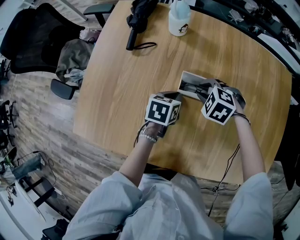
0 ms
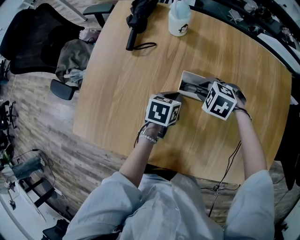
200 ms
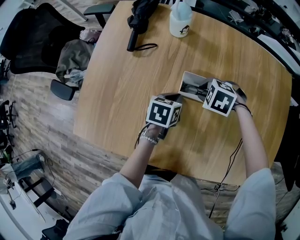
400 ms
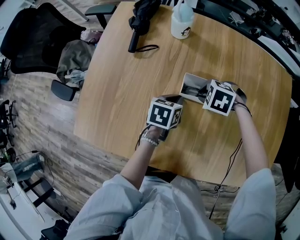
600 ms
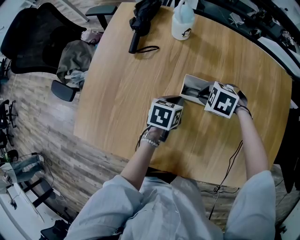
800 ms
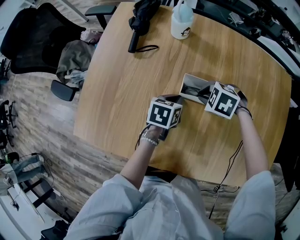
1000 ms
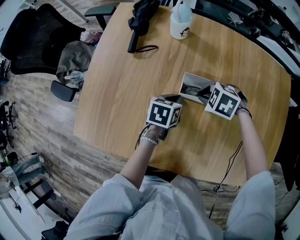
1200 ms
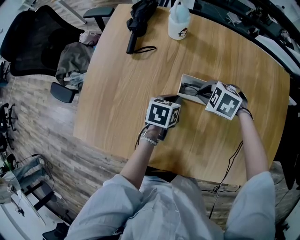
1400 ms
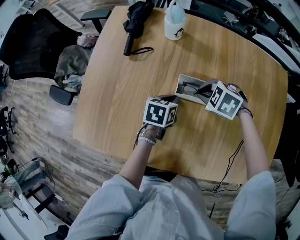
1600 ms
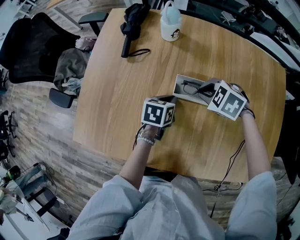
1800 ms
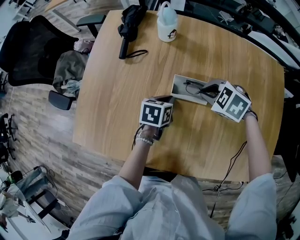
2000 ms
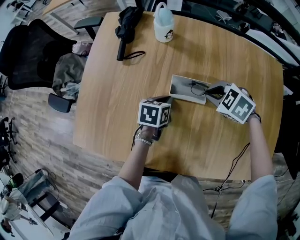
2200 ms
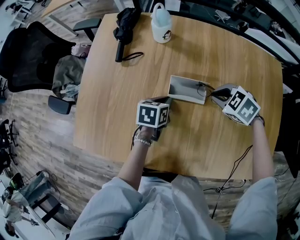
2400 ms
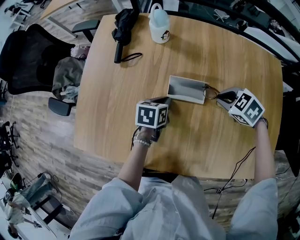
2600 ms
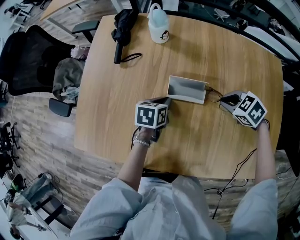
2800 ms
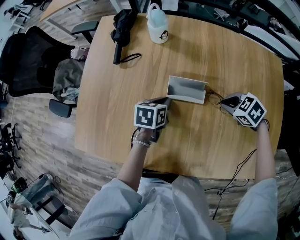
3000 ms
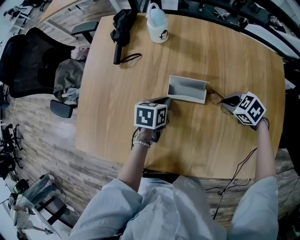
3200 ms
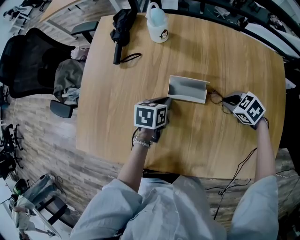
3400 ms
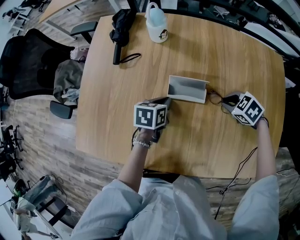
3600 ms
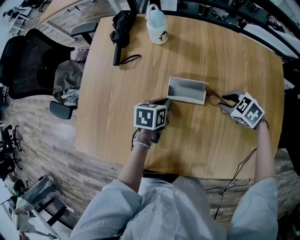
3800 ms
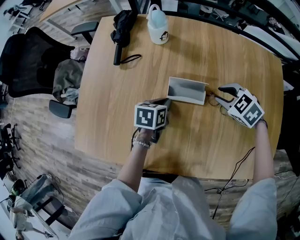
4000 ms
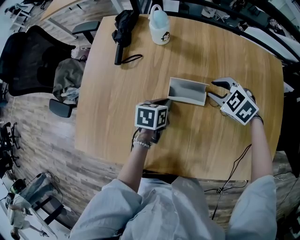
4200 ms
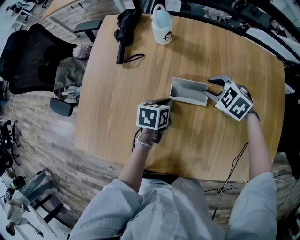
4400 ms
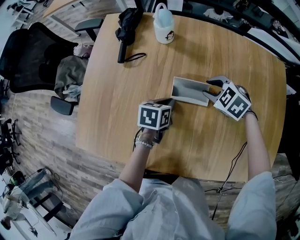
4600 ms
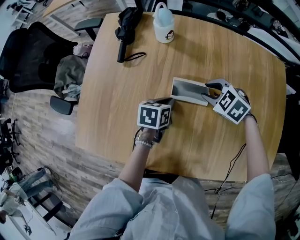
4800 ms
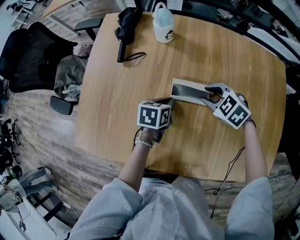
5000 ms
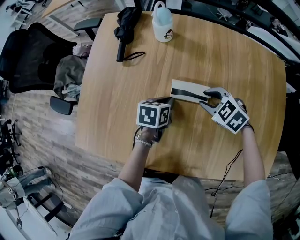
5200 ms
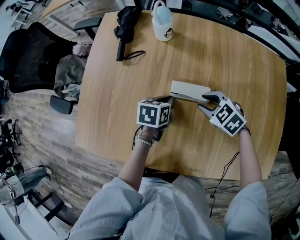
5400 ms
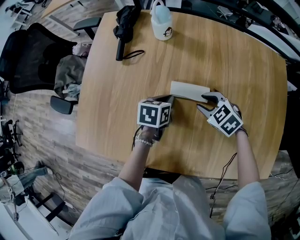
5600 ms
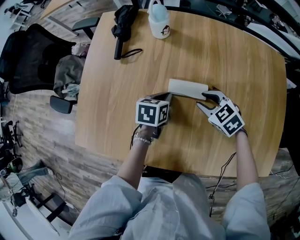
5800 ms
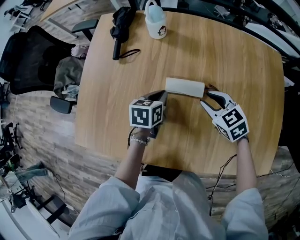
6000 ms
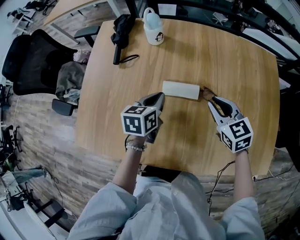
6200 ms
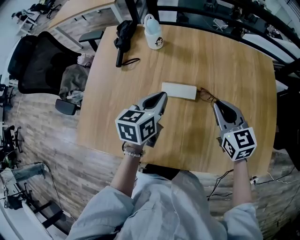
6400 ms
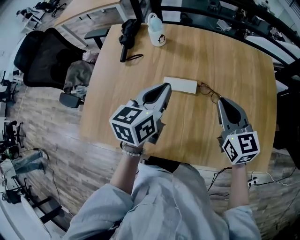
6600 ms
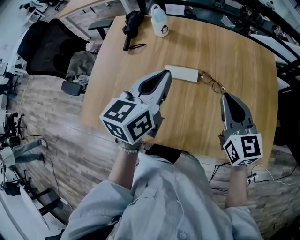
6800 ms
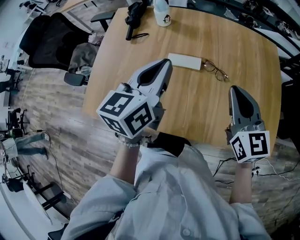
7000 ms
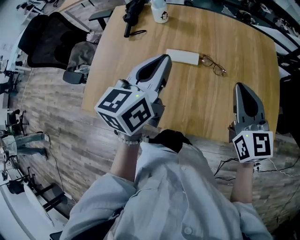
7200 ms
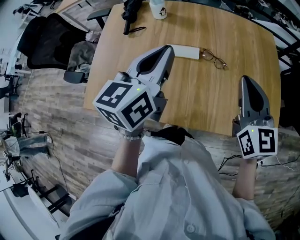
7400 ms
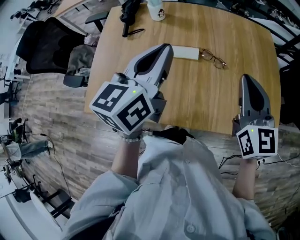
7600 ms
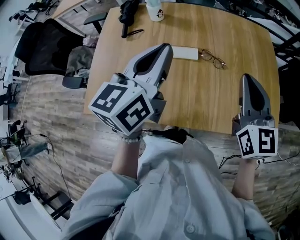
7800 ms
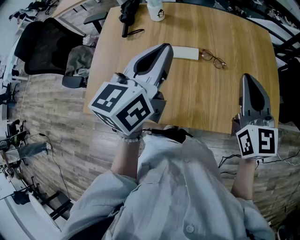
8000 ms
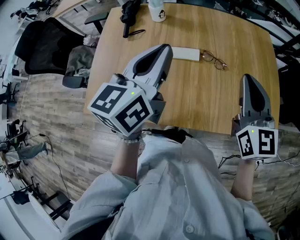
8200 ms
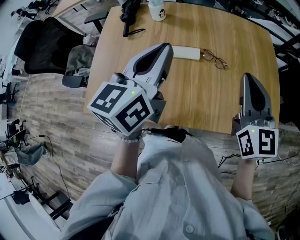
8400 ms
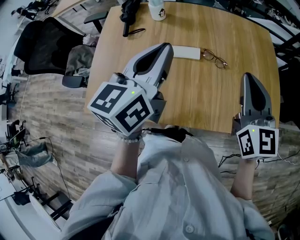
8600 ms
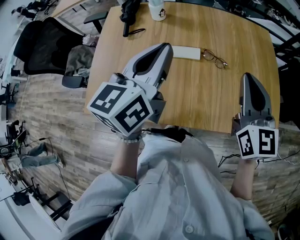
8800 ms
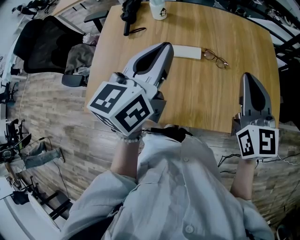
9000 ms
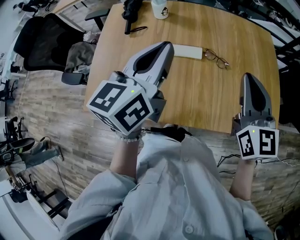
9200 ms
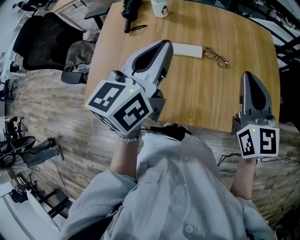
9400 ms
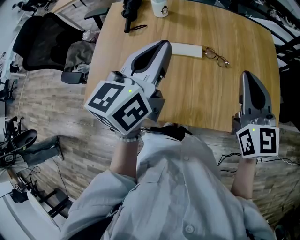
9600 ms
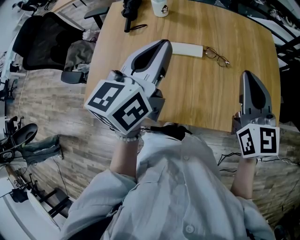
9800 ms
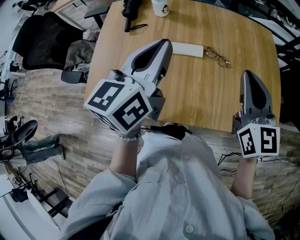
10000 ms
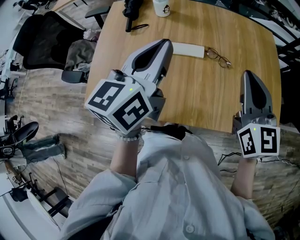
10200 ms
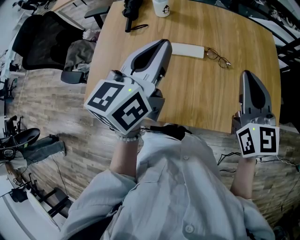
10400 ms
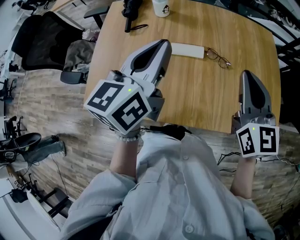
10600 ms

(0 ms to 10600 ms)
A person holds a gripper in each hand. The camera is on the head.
0 ms - 1600 ms: There are only small adjustments of the grippers.
1600 ms - 3000 ms: The right gripper moves to the right and backward, approximately 15 cm, and swivels approximately 20 degrees.
3000 ms - 4600 ms: The right gripper goes about 10 cm to the left and forward, and opens.
4600 ms - 6000 ms: The right gripper moves backward, roughly 5 cm, and swivels about 30 degrees.
6000 ms - 7600 ms: The left gripper goes about 30 cm upward, and angles its fingers upward, by approximately 40 degrees. Meanwhile the right gripper is displaced upward and backward by approximately 30 cm, tilts its fingers some 40 degrees upward, and closes up.
7600 ms - 10600 ms: The grippers make only small movements.

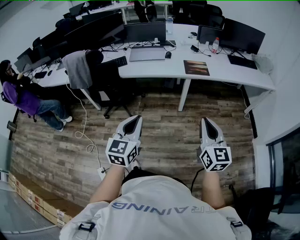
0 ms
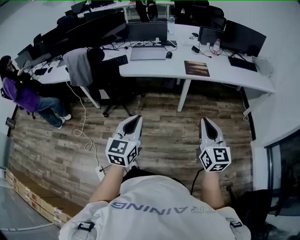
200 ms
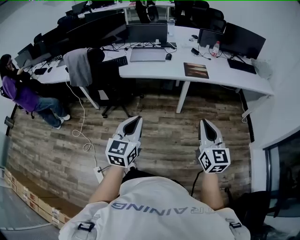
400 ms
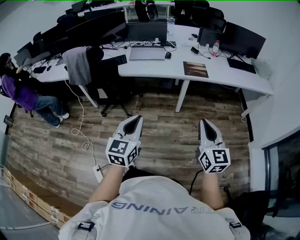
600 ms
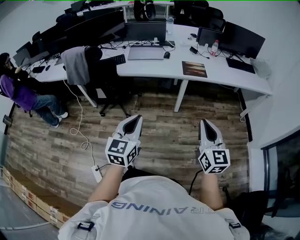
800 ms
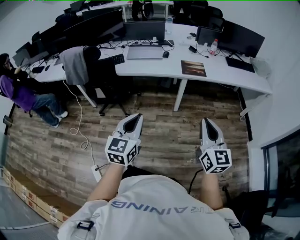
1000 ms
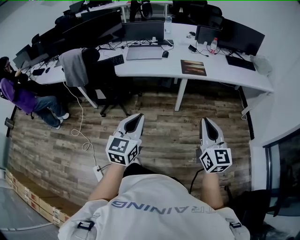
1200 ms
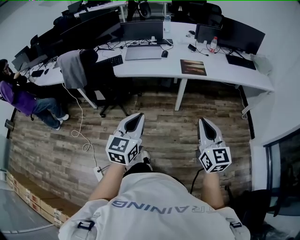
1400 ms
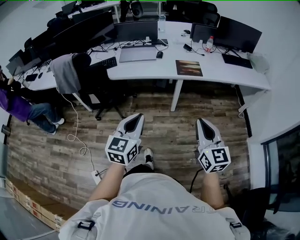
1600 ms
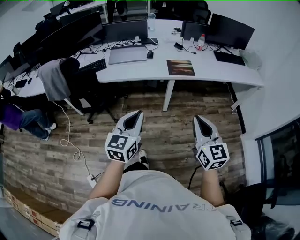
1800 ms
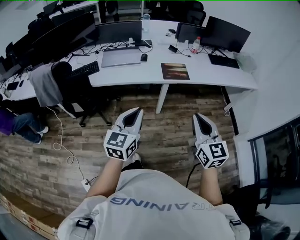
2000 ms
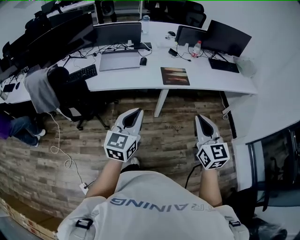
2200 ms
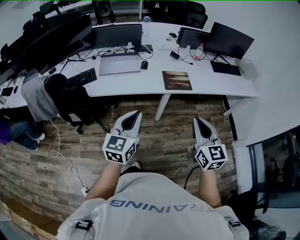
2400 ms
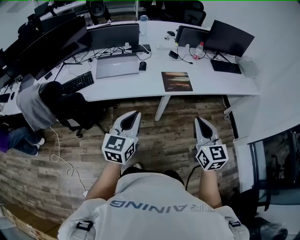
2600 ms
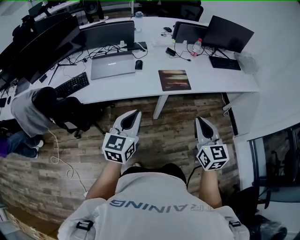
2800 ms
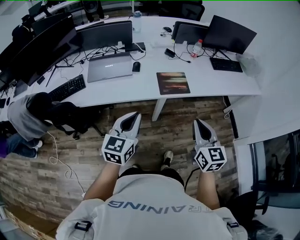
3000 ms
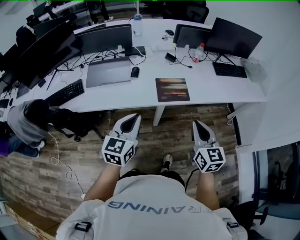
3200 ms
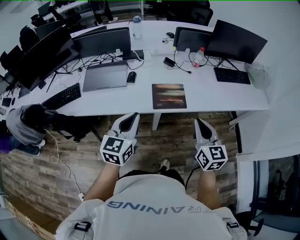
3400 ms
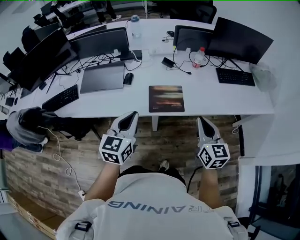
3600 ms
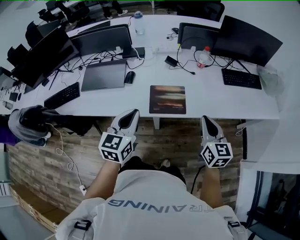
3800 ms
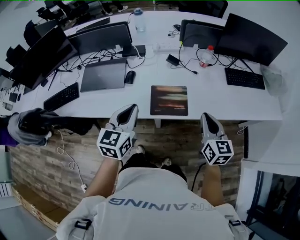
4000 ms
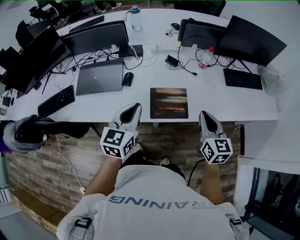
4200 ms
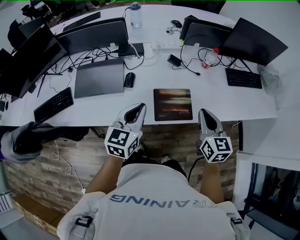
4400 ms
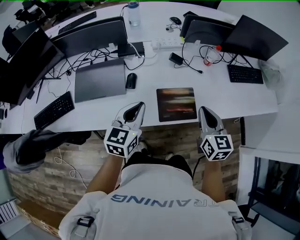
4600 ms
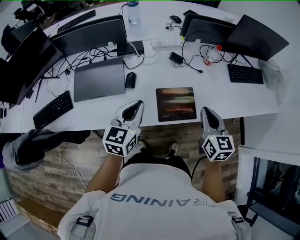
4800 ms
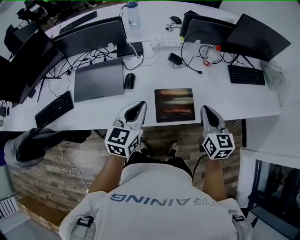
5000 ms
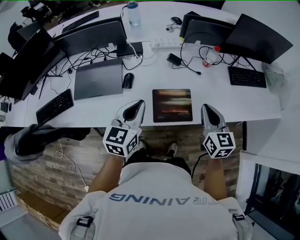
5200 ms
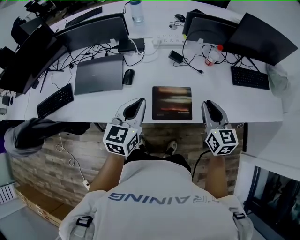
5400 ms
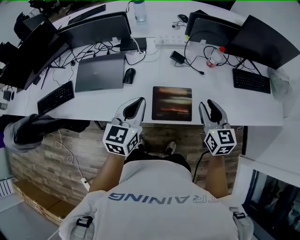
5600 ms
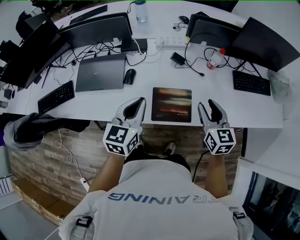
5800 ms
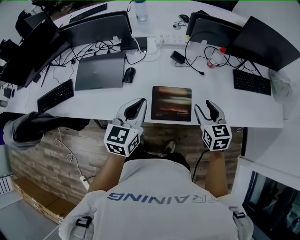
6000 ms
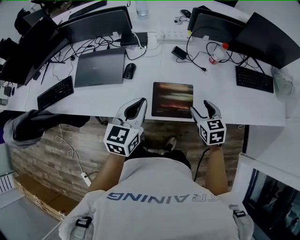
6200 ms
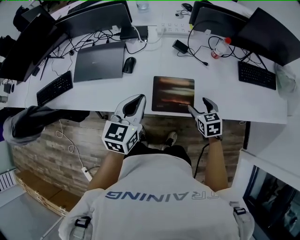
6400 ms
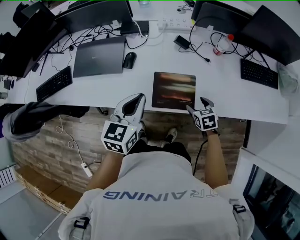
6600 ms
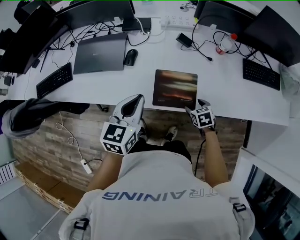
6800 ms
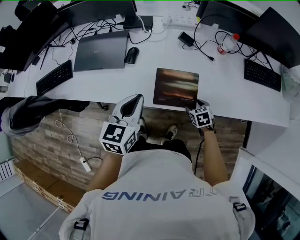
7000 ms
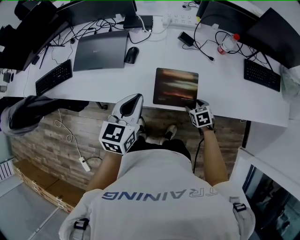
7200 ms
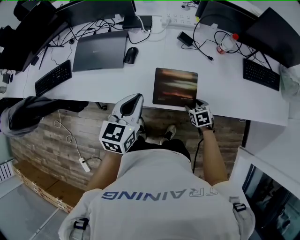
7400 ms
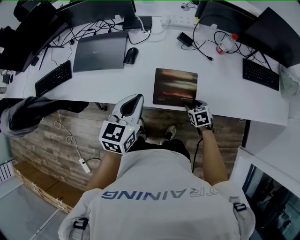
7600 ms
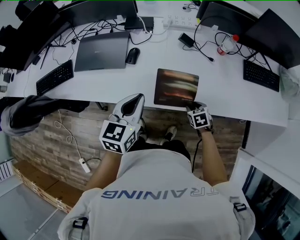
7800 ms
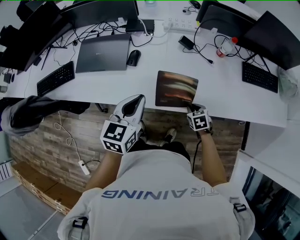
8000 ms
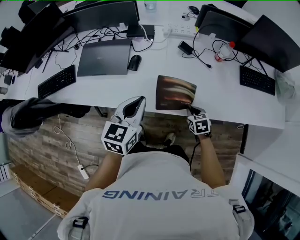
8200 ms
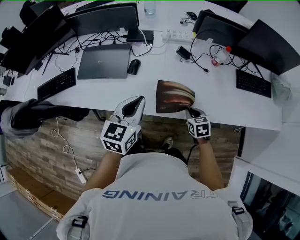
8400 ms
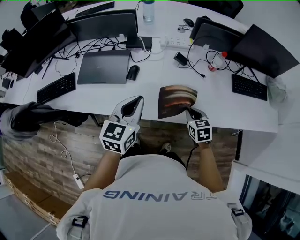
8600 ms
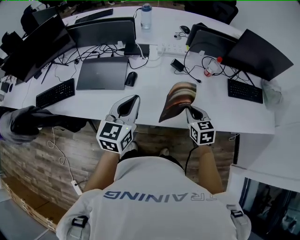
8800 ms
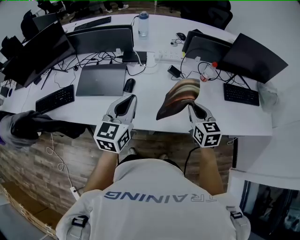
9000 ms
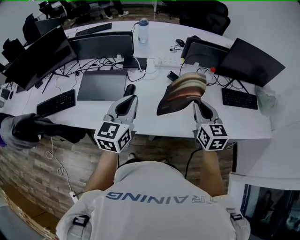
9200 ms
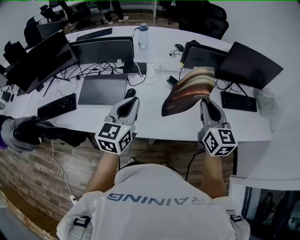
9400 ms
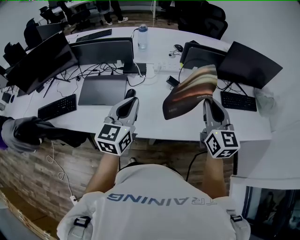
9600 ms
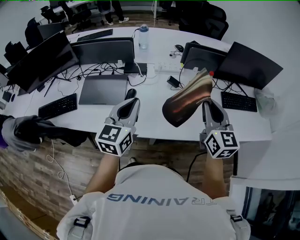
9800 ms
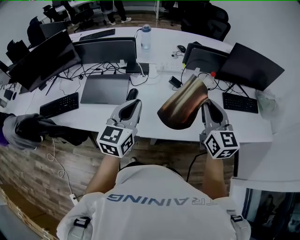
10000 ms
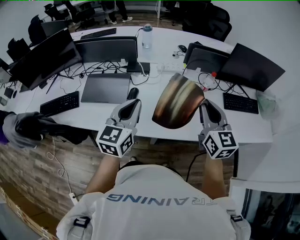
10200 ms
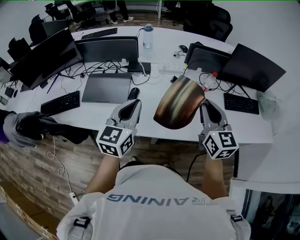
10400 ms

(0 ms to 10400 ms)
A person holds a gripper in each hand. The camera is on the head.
0 ms - 1400 ms: There are only small adjustments of the grippers.
1400 ms - 3000 ms: The two grippers go about 30 cm forward.
3000 ms - 4400 ms: Both grippers move forward, about 30 cm.
4400 ms - 6000 ms: The right gripper moves forward and downward, approximately 10 cm, and opens.
6000 ms - 7400 ms: The left gripper moves approximately 5 cm. The right gripper is displaced downward by roughly 25 cm, and angles its fingers downward, by approximately 30 degrees.
7400 ms - 9000 ms: The right gripper shifts about 30 cm upward, tilts its fingers about 40 degrees upward, and closes its fingers, while the left gripper shifts roughly 10 cm upward.
9000 ms - 10400 ms: The right gripper goes roughly 15 cm upward, and turns by roughly 20 degrees.

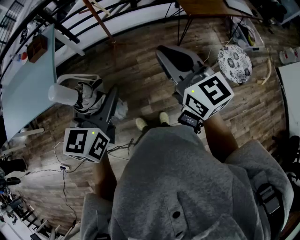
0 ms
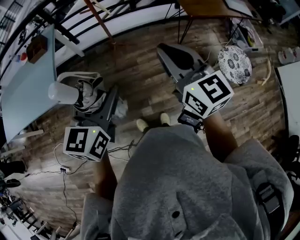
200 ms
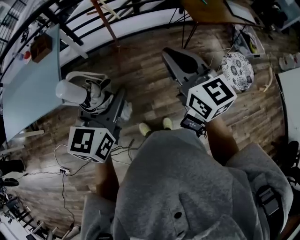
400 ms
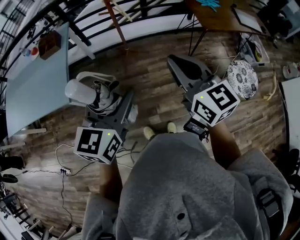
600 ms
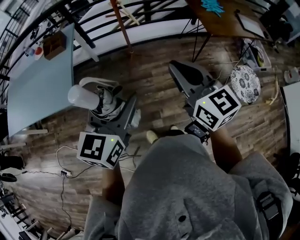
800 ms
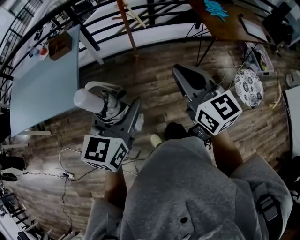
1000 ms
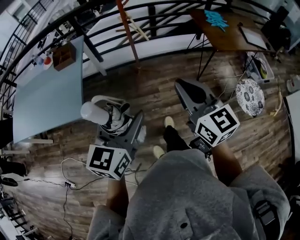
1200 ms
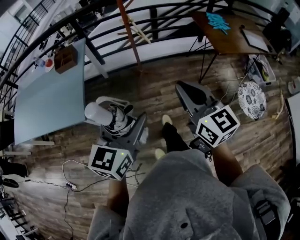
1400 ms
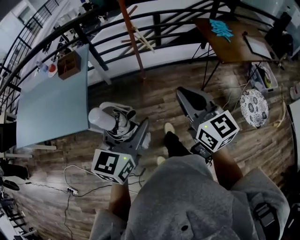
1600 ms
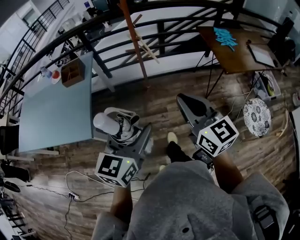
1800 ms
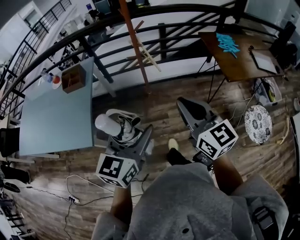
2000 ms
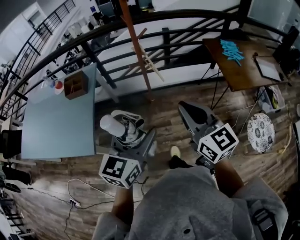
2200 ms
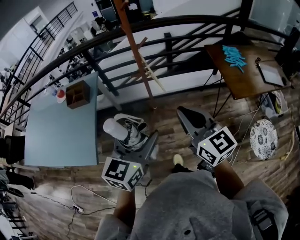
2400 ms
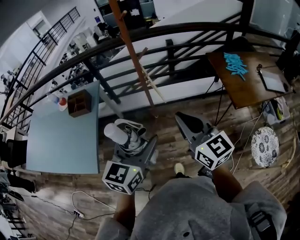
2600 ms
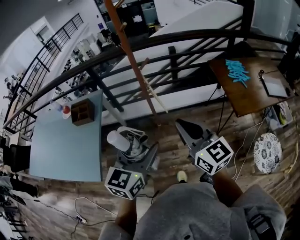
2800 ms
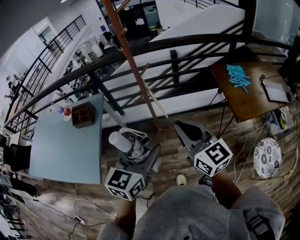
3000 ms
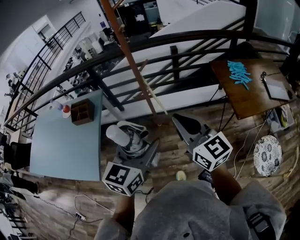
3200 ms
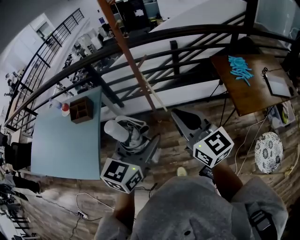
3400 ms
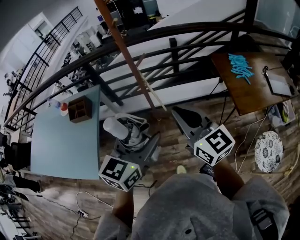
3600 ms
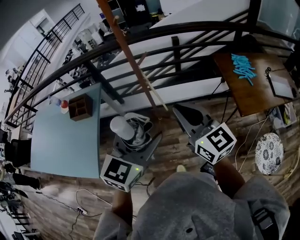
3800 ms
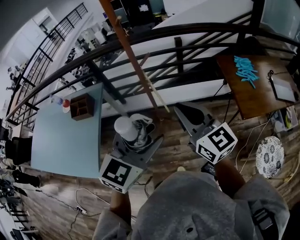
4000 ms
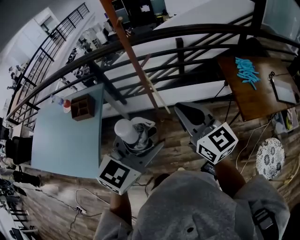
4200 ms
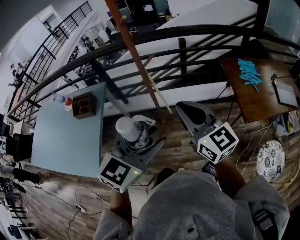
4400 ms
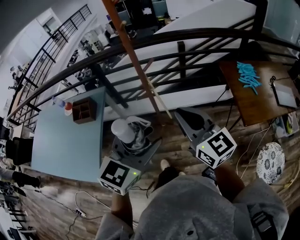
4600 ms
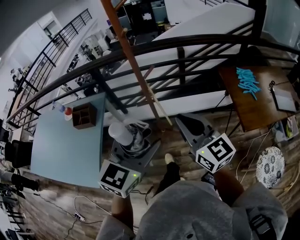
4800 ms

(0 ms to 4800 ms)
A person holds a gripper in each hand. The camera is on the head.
0 ms - 1600 ms: The two grippers go about 15 cm to the left and forward.
1600 ms - 3200 ms: The grippers both shift forward by approximately 25 cm.
3200 ms - 4800 ms: Both grippers travel together forward, some 5 cm.
